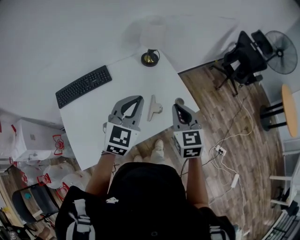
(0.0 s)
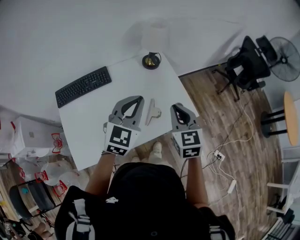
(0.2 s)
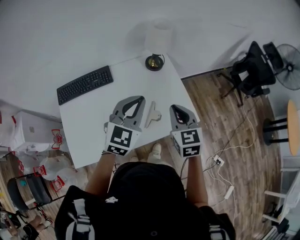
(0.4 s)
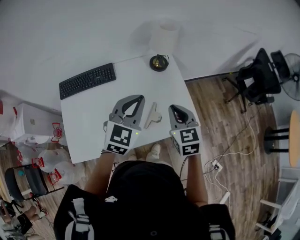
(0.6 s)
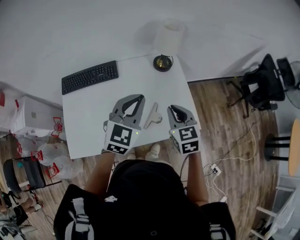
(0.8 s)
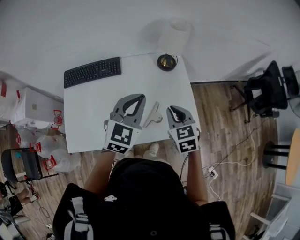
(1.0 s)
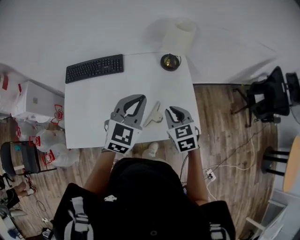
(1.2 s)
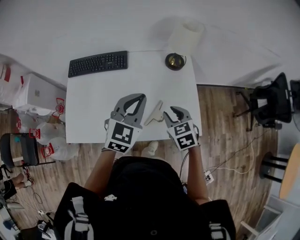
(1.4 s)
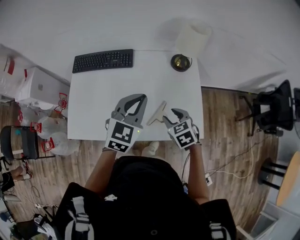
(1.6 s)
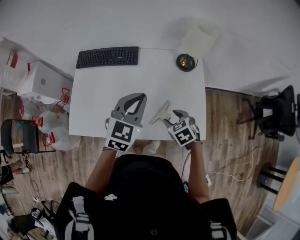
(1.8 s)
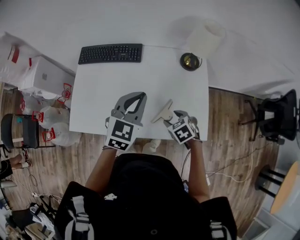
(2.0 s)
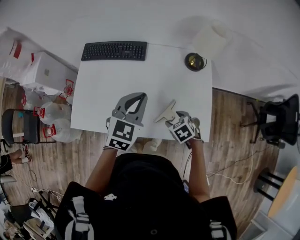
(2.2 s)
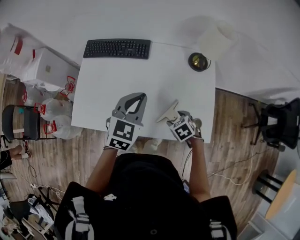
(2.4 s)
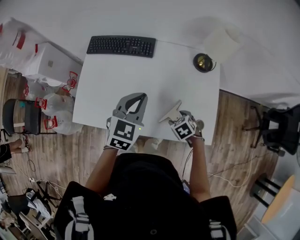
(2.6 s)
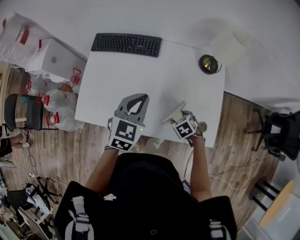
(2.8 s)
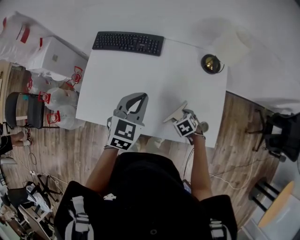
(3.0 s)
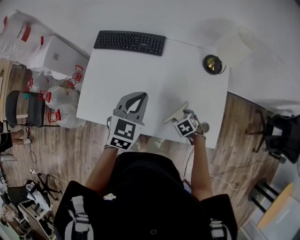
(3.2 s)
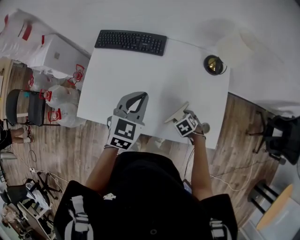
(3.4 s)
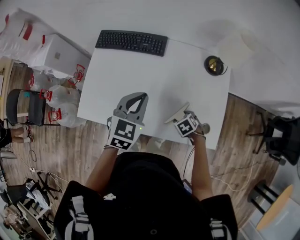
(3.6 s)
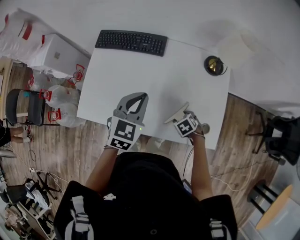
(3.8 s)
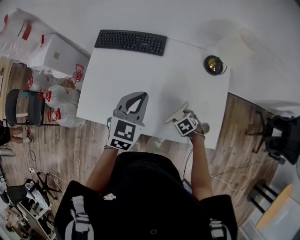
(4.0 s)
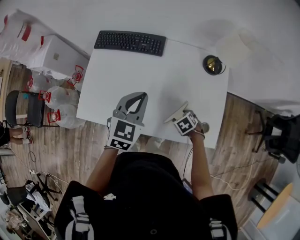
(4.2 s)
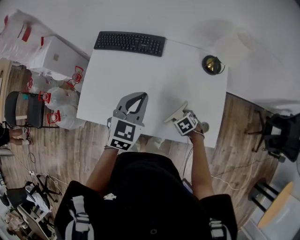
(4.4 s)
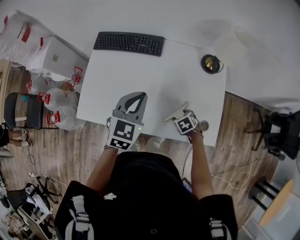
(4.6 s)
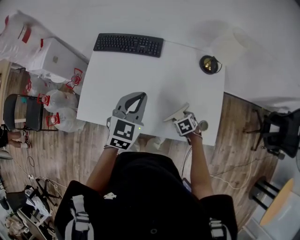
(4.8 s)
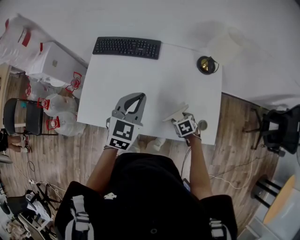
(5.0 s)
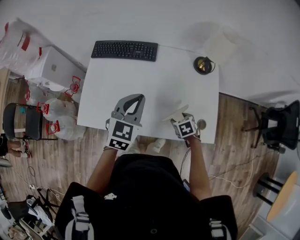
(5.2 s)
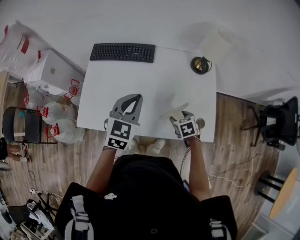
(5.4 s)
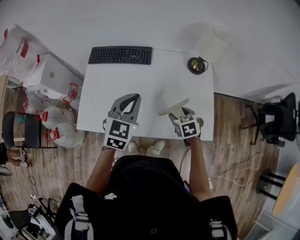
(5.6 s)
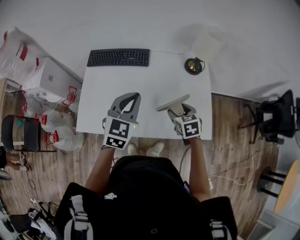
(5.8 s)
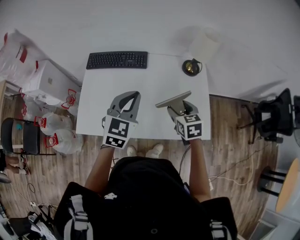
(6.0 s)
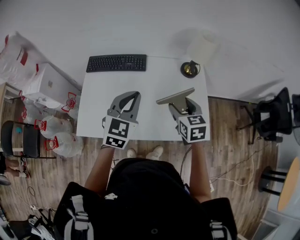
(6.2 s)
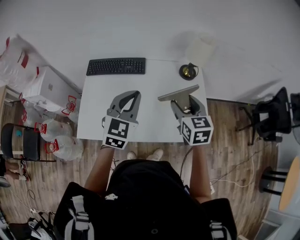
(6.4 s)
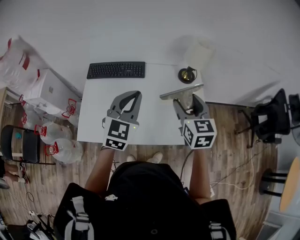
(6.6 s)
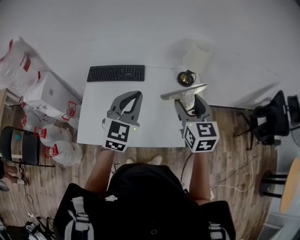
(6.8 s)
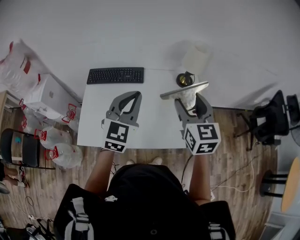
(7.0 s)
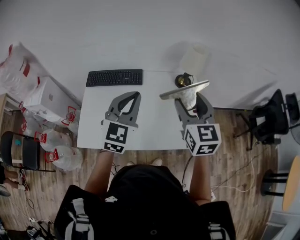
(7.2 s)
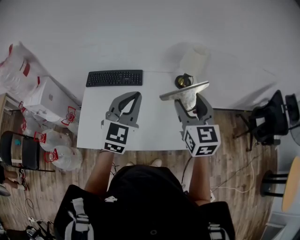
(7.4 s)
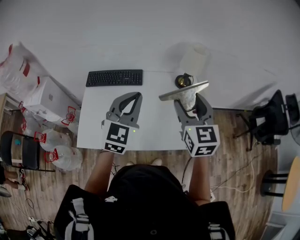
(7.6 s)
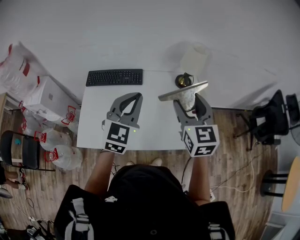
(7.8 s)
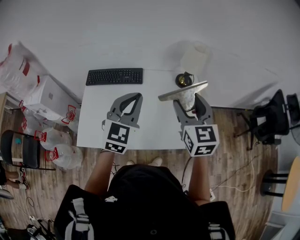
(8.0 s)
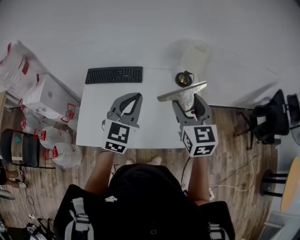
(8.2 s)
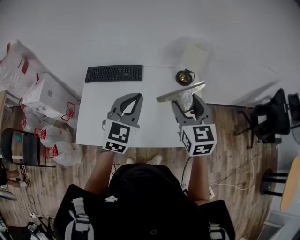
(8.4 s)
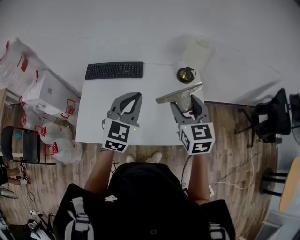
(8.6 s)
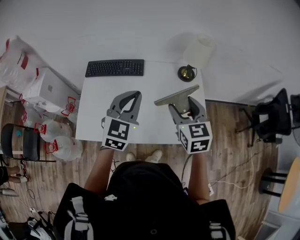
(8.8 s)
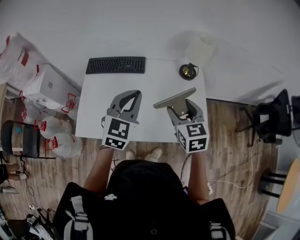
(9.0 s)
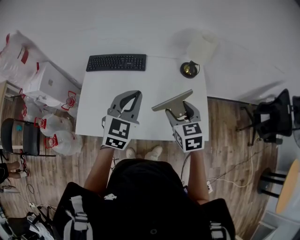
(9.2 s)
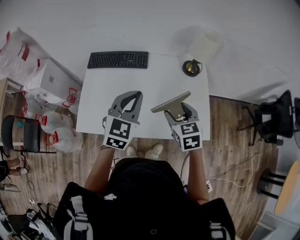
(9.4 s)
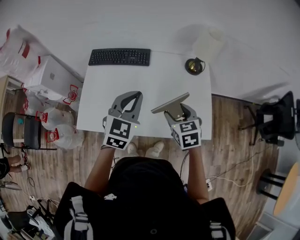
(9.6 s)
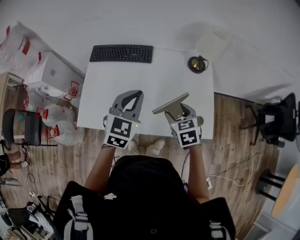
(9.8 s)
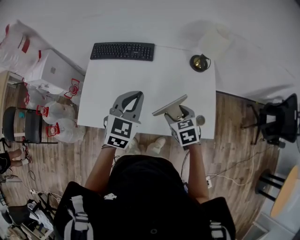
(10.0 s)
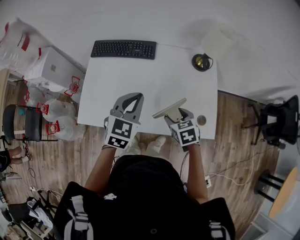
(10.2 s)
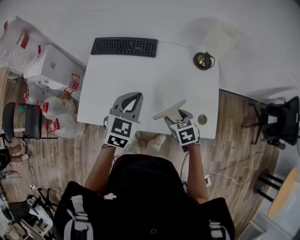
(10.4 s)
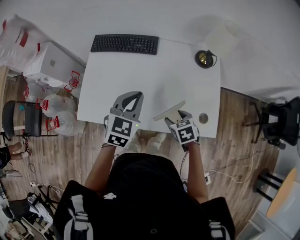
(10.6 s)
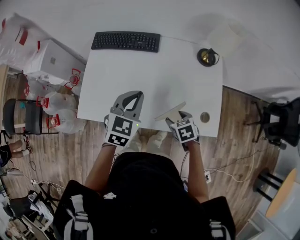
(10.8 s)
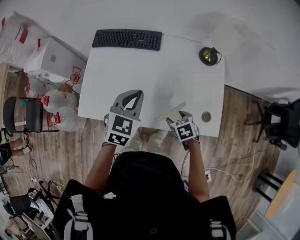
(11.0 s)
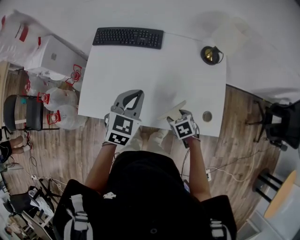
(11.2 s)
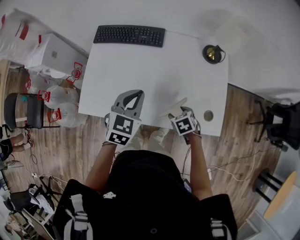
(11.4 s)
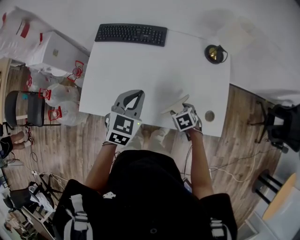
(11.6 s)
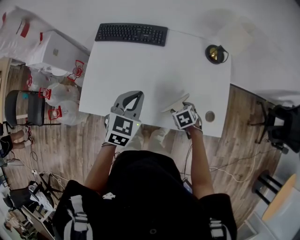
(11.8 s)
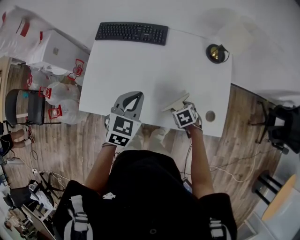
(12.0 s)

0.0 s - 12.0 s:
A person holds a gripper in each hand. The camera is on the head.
0.0 s - 1.6 s: The right gripper heads downward, covering roughly 15 cm, swivels some 50 degrees, and opens. Meanwhile the left gripper shifts by about 10 cm, and rotates approximately 30 degrees.
1.6 s - 3.0 s: The left gripper heads to the left and downward, covering roughly 10 cm. Meanwhile the right gripper moves downward, approximately 15 cm, and changes its angle by approximately 20 degrees.
3.0 s - 4.4 s: The grippers make only small movements.
4.4 s - 6.0 s: The right gripper is displaced upward by some 25 cm, and tips its fingers upward by roughly 30 degrees. The left gripper shifts some 5 cm upward.
6.0 s - 7.6 s: The right gripper shifts about 20 cm upward, and angles its fingers upward, by approximately 30 degrees. Meanwhile the left gripper goes roughly 10 cm upward.
7.6 s - 9.0 s: The right gripper travels downward by about 10 cm. Meanwhile the left gripper moves downward, approximately 5 cm.
9.0 s - 10.4 s: The left gripper heads downward, covering approximately 10 cm. The right gripper heads downward, covering about 20 cm, and turns by some 30 degrees.
10.4 s - 12.0 s: The right gripper travels downward by approximately 15 cm, while the left gripper goes roughly 5 cm downward.

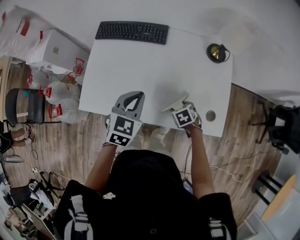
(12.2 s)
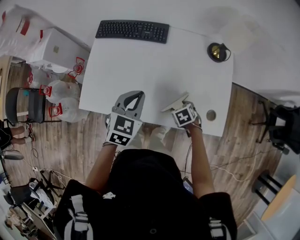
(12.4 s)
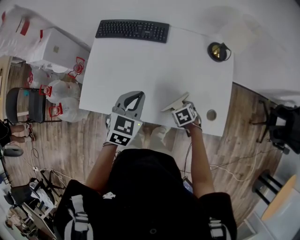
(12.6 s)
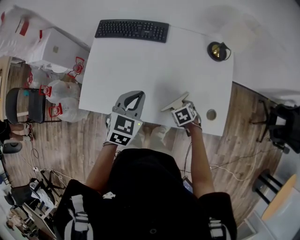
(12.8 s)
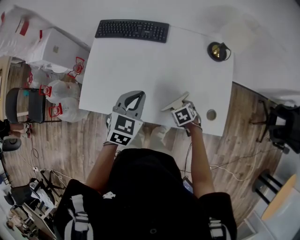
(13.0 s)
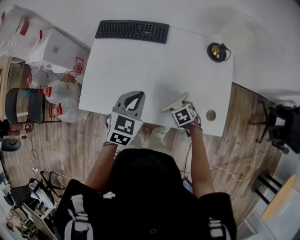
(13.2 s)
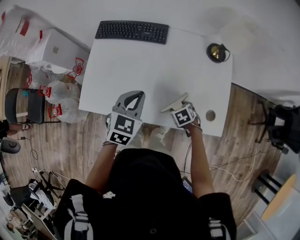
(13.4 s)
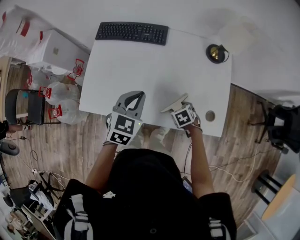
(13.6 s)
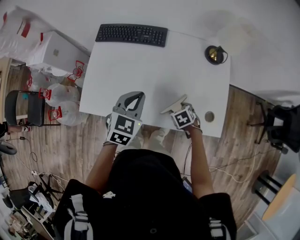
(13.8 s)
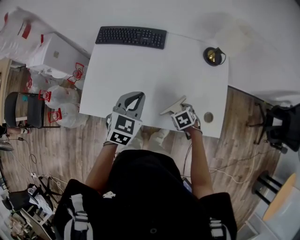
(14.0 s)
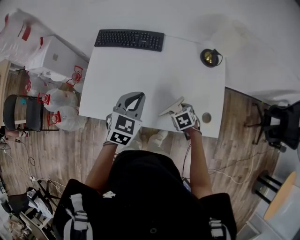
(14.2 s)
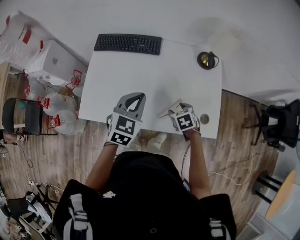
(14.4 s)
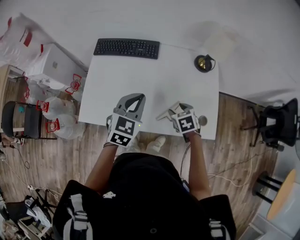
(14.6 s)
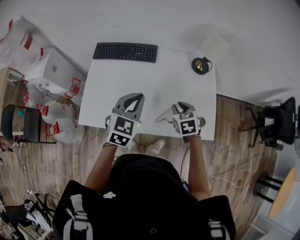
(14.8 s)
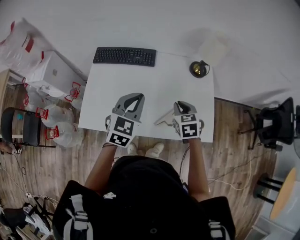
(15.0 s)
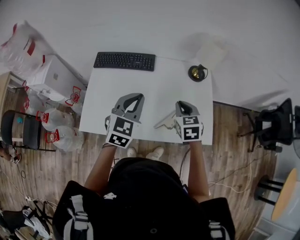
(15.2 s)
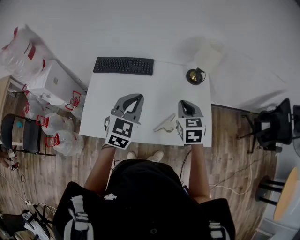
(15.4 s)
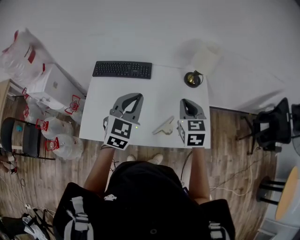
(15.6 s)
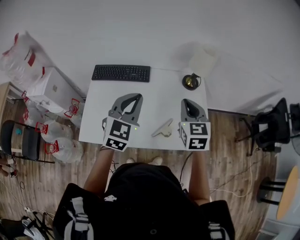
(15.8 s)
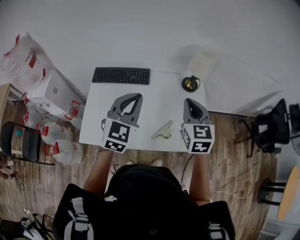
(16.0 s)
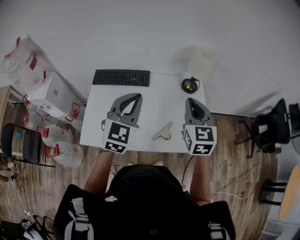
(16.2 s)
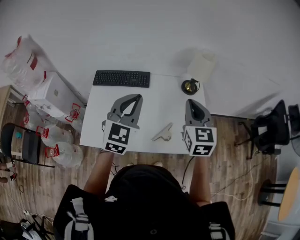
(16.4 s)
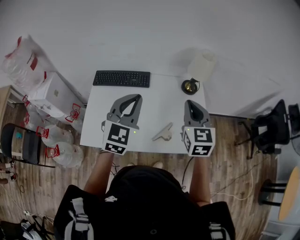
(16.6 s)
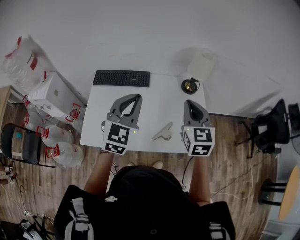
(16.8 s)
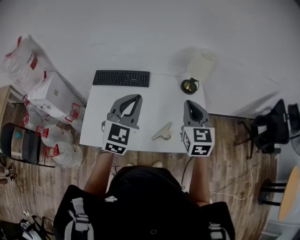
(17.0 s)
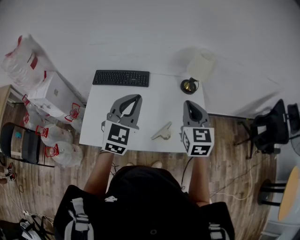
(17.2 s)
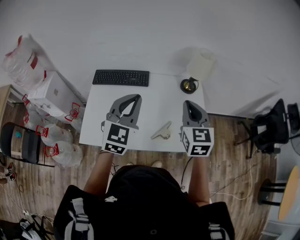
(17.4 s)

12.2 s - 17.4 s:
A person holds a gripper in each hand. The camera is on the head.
12.2 s - 14.0 s: Neither gripper changes place.
14.0 s - 15.6 s: The right gripper shifts some 30 cm upward, angles its fingers upward, by about 50 degrees, and closes up. Meanwhile the left gripper shifts approximately 15 cm upward, and turns by about 20 degrees.
15.6 s - 17.4 s: The grippers both shift upward by roughly 5 cm.

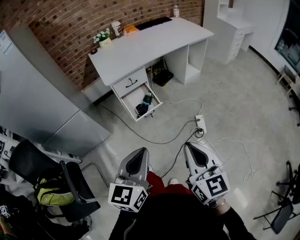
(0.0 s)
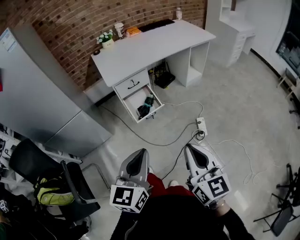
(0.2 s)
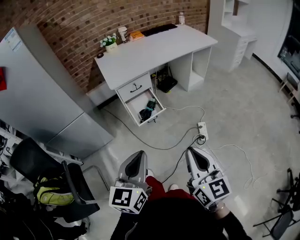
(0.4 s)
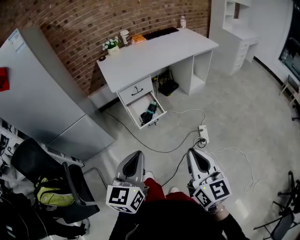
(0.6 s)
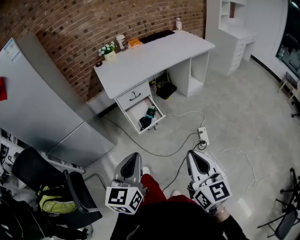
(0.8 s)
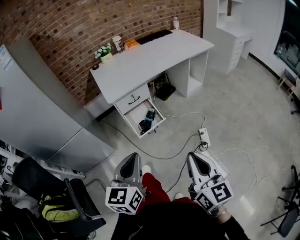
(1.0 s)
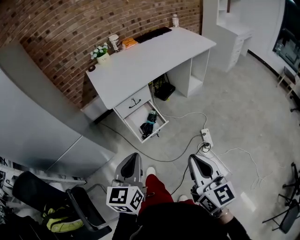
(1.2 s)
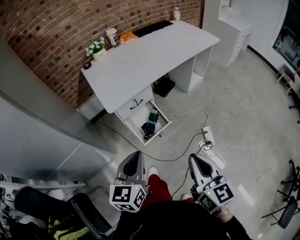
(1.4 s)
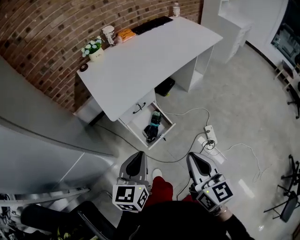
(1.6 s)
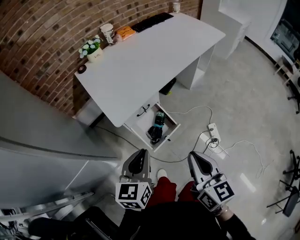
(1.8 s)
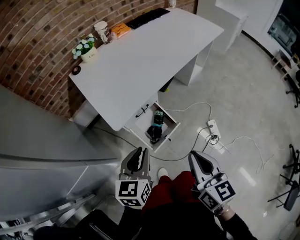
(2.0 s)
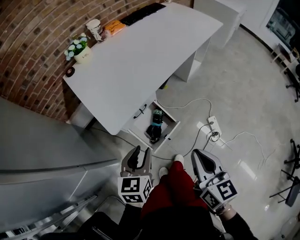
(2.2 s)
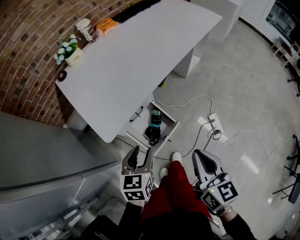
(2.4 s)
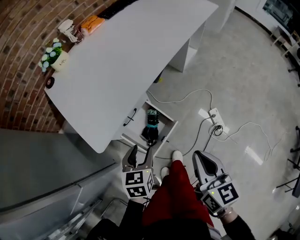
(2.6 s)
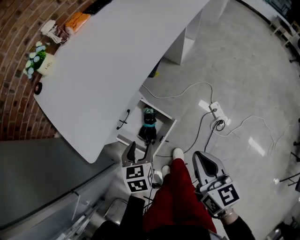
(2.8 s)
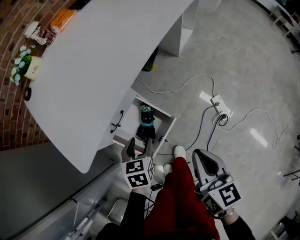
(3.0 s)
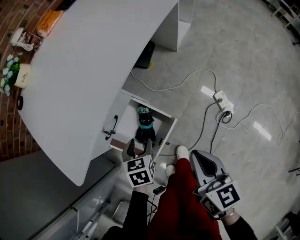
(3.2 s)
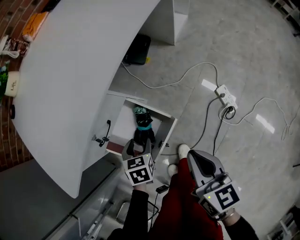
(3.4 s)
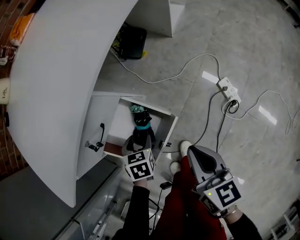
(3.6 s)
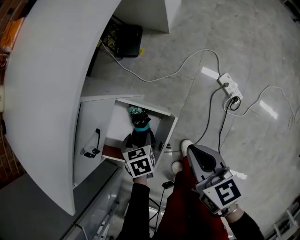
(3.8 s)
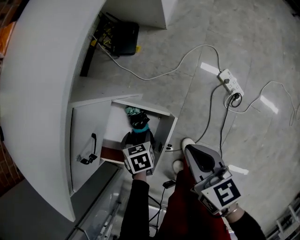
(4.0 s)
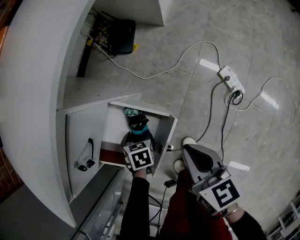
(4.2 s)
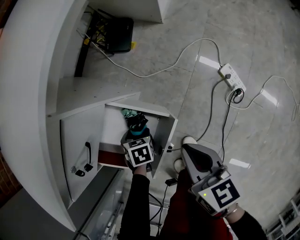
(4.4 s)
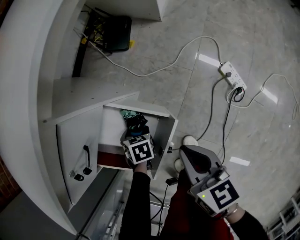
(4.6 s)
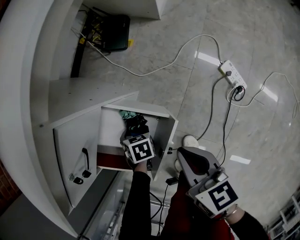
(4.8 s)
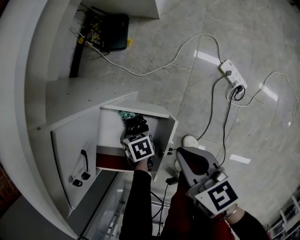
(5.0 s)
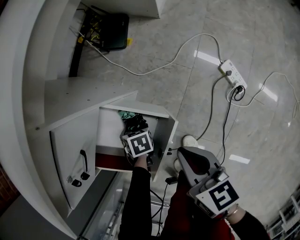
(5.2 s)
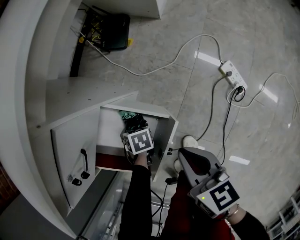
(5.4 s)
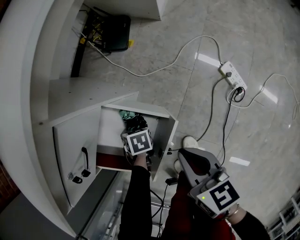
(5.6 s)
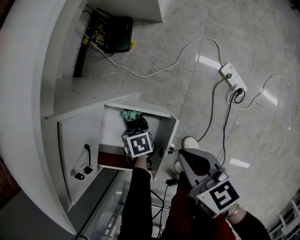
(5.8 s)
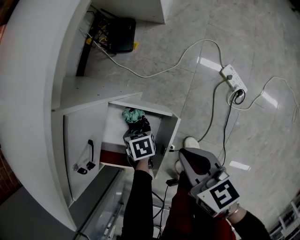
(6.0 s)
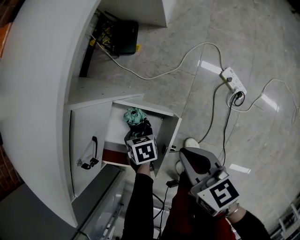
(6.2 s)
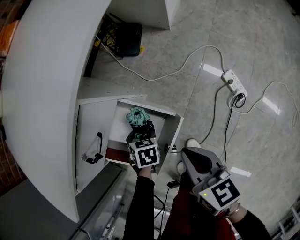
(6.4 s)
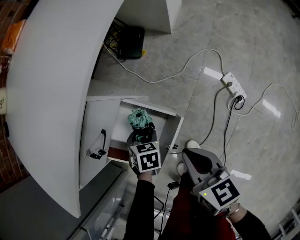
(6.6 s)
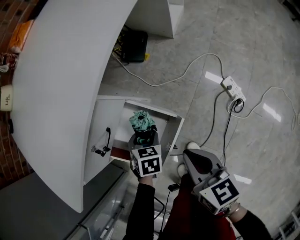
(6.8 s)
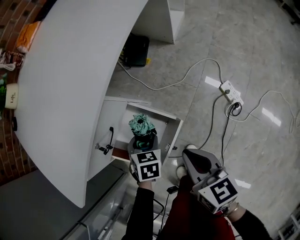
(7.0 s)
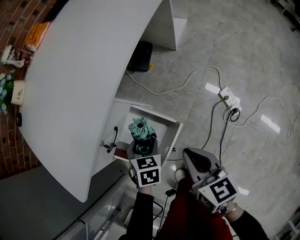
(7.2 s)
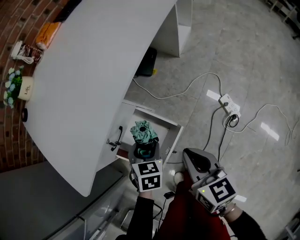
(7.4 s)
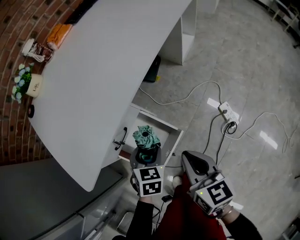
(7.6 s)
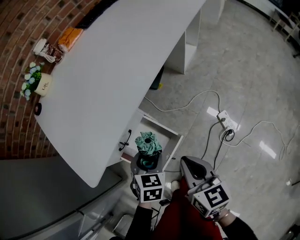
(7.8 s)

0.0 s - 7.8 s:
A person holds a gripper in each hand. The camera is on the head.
0.0 s - 1.6 s: Both grippers travel together forward and to the left, about 30 cm.
1.6 s - 3.2 s: The two grippers go approximately 40 cm downward and forward. The left gripper tips its fingers downward by some 40 degrees, and opens up; the right gripper rotates roughly 20 degrees.
3.2 s - 4.6 s: Both grippers move downward, roughly 20 cm. The left gripper swivels about 20 degrees.
4.6 s - 6.2 s: The grippers stay close to where they were, moving slightly.
6.2 s - 7.8 s: The left gripper heads upward, covering approximately 30 cm, and swivels some 20 degrees. Meanwhile the right gripper heads upward, covering roughly 15 cm.
